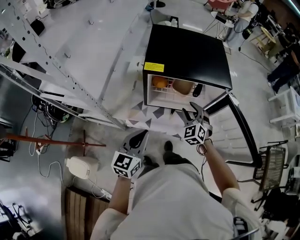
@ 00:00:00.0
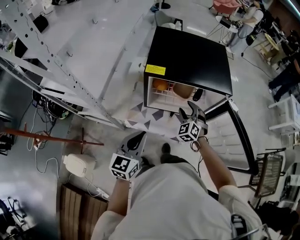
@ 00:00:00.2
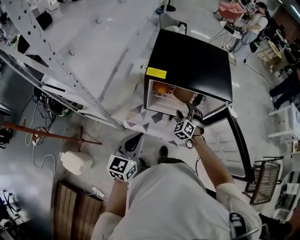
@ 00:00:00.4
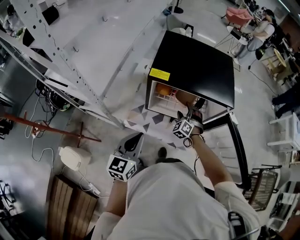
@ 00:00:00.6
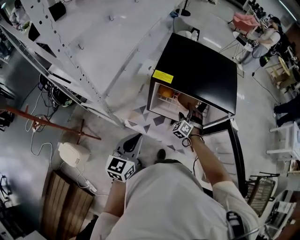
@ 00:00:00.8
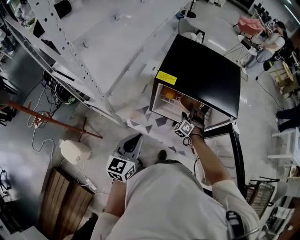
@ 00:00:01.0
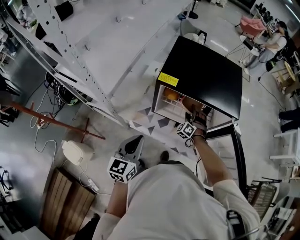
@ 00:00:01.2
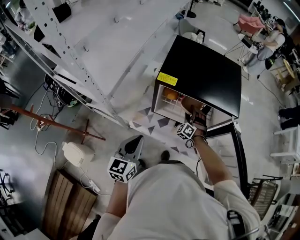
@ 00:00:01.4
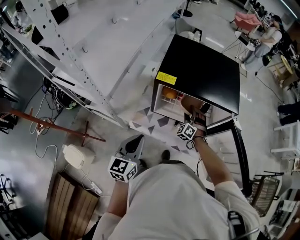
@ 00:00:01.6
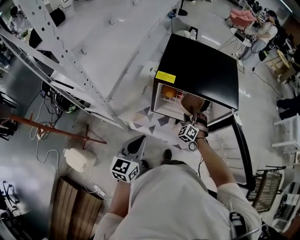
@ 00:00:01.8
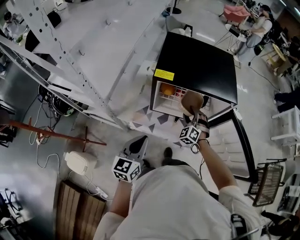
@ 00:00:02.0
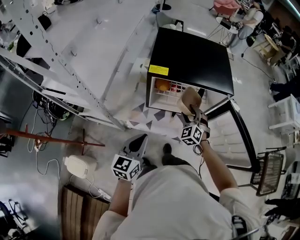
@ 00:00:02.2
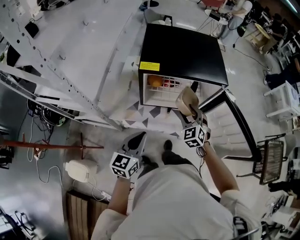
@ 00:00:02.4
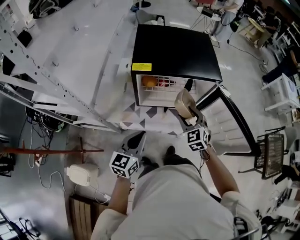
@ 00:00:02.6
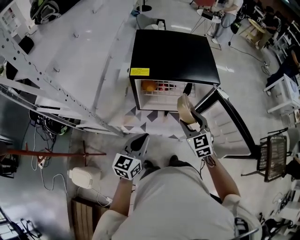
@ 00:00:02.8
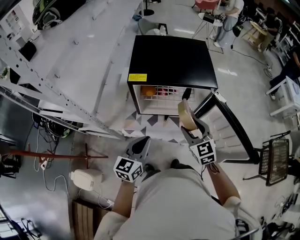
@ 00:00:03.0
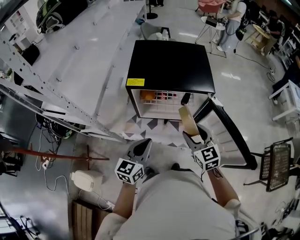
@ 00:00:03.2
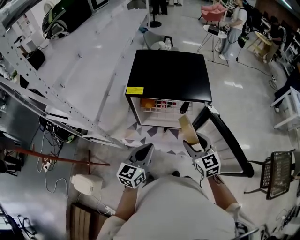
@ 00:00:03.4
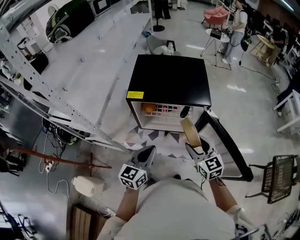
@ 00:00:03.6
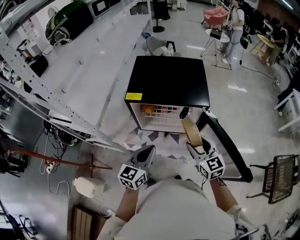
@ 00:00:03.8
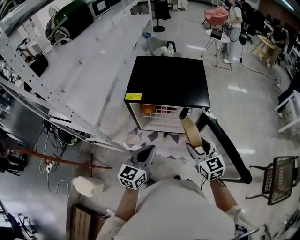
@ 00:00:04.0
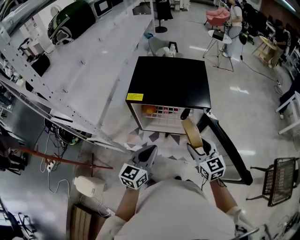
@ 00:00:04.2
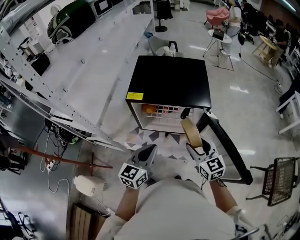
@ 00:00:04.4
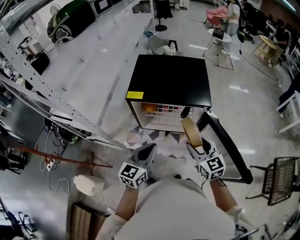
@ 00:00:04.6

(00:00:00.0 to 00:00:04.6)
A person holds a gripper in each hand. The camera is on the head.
00:00:00.0 - 00:00:01.6: The right gripper is displaced downward and forward by approximately 15 cm, and turns by approximately 20 degrees.
00:00:01.6 - 00:00:03.0: The right gripper is displaced upward and backward by some 25 cm, and rolls clockwise, seen from behind, by about 50 degrees. The left gripper shifts approximately 5 cm to the right.
00:00:03.0 - 00:00:04.6: The two grippers go approximately 5 cm to the right.

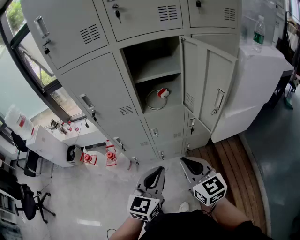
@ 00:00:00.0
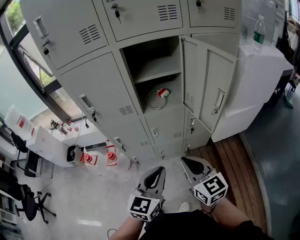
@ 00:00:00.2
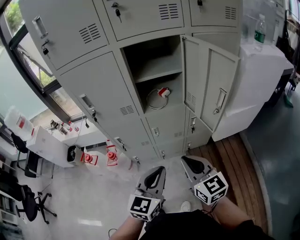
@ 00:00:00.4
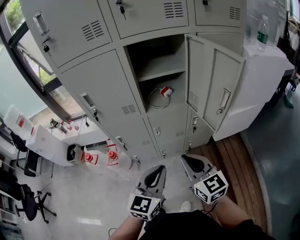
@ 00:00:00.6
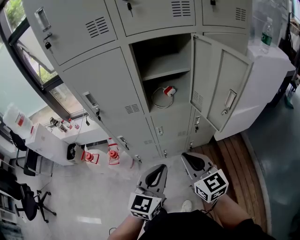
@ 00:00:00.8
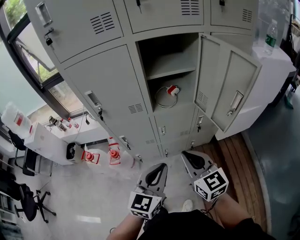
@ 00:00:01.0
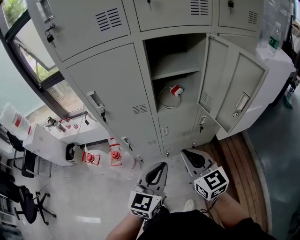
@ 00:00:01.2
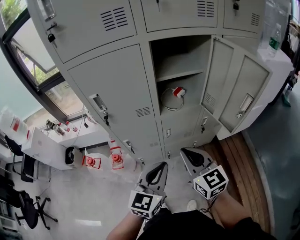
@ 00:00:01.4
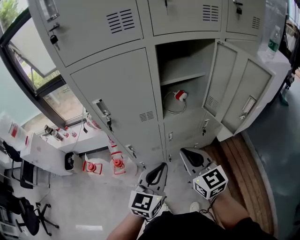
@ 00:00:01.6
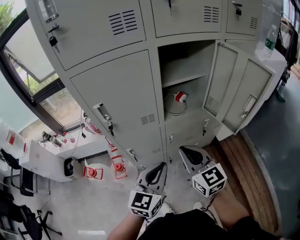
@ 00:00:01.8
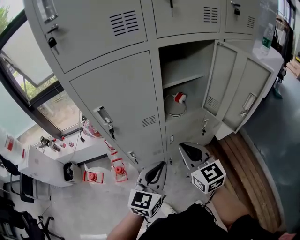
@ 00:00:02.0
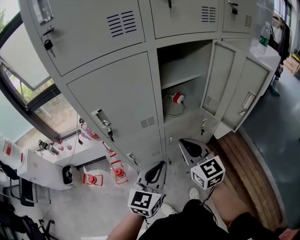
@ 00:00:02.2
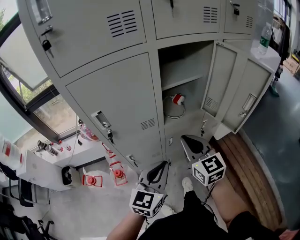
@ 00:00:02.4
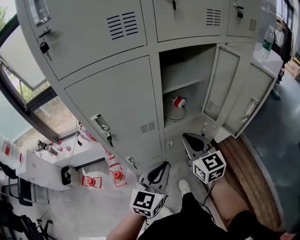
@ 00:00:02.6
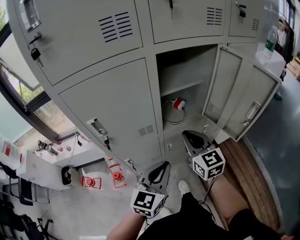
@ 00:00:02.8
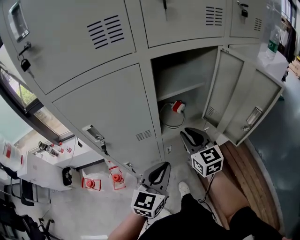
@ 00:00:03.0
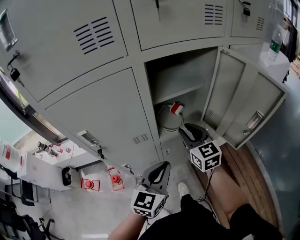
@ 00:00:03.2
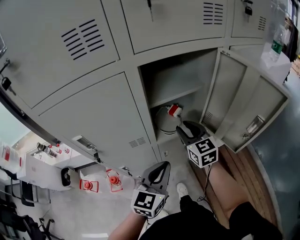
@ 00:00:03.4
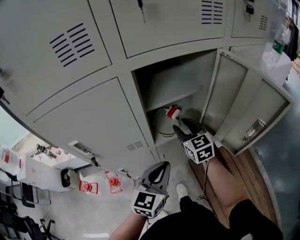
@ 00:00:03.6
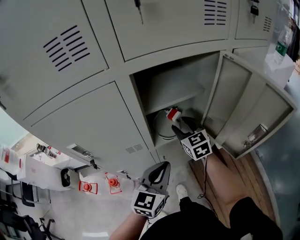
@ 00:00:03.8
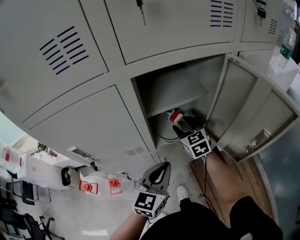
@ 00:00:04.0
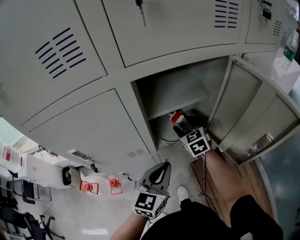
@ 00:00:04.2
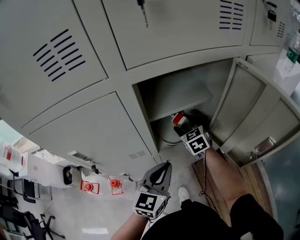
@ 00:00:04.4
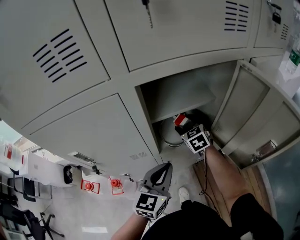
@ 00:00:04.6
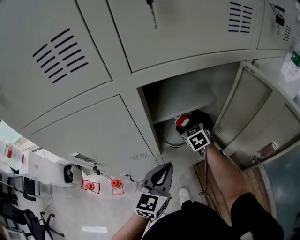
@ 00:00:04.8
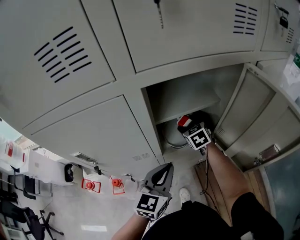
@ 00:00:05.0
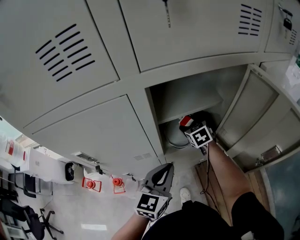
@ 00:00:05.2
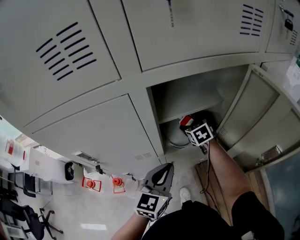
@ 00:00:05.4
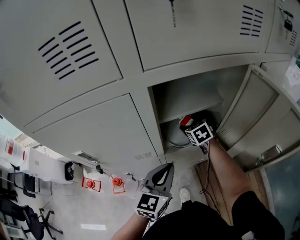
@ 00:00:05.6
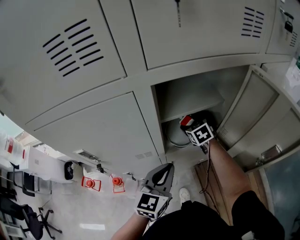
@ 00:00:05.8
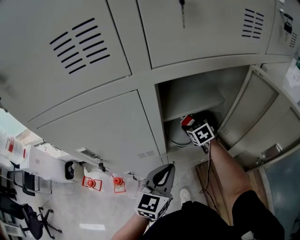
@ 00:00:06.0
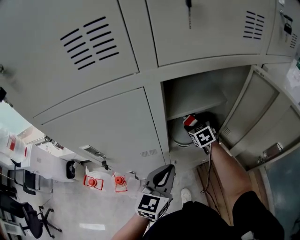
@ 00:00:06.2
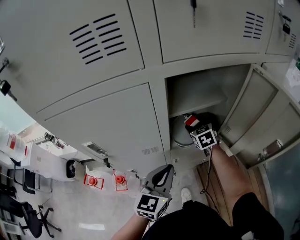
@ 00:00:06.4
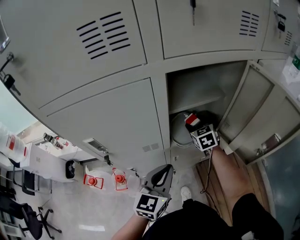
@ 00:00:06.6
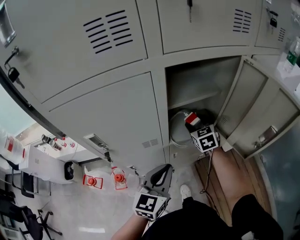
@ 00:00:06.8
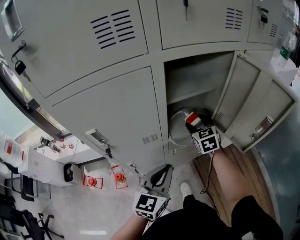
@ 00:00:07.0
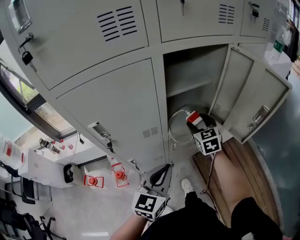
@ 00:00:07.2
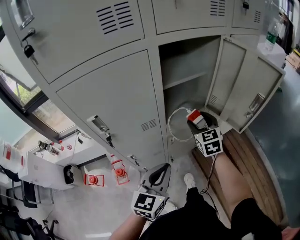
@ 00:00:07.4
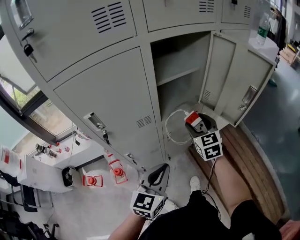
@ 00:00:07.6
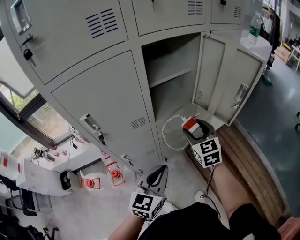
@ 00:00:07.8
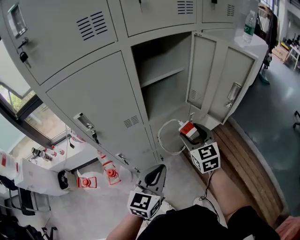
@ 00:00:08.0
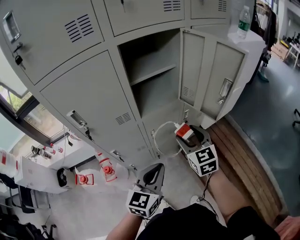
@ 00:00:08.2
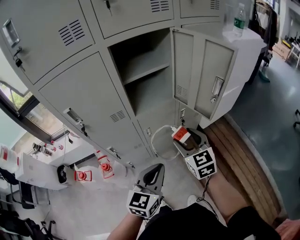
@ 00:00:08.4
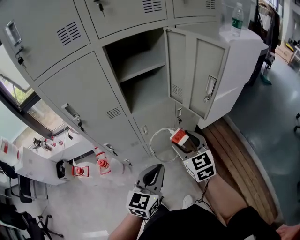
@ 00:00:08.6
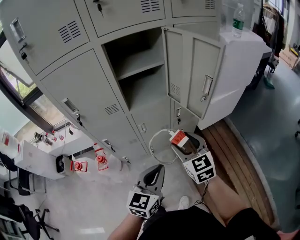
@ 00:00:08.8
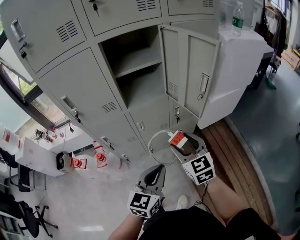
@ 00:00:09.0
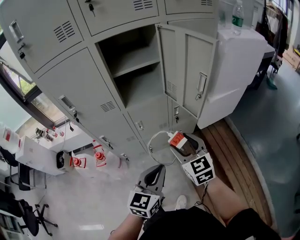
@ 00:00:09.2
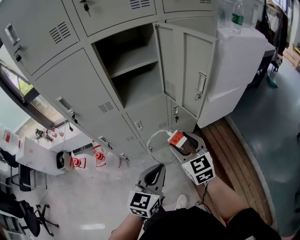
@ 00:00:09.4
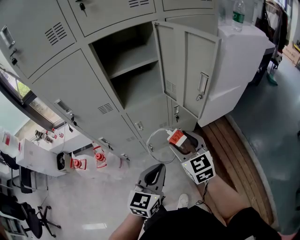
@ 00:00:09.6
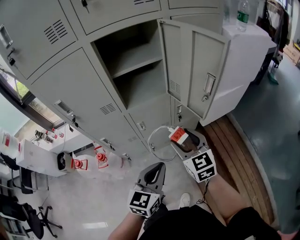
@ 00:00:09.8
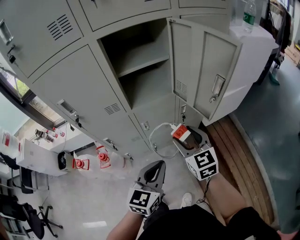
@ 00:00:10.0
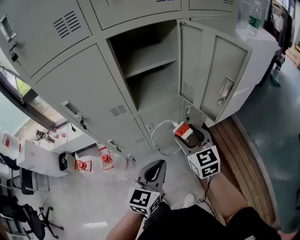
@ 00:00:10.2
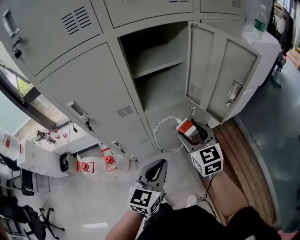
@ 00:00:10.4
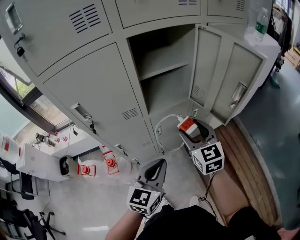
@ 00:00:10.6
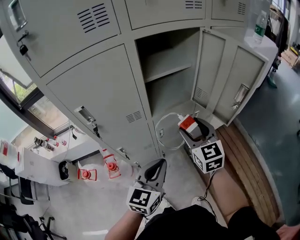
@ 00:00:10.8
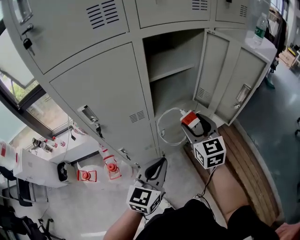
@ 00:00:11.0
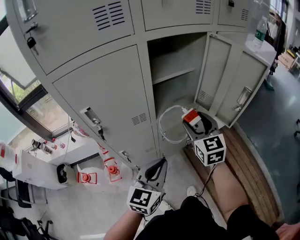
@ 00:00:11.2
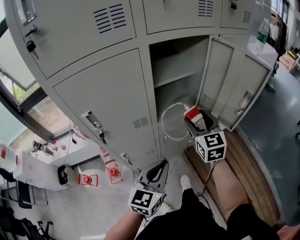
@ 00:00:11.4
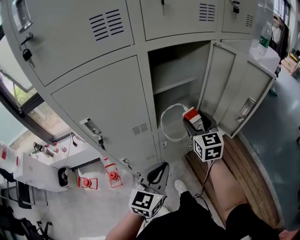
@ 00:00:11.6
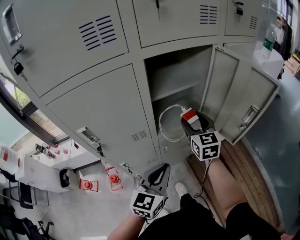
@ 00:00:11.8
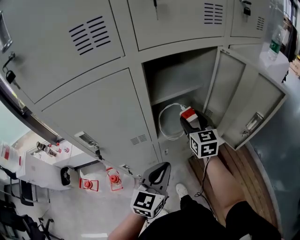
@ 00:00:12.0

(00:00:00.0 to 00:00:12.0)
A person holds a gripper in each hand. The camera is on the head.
00:00:00.0 - 00:00:01.6: The two grippers go about 15 cm to the left and forward.
00:00:01.6 - 00:00:03.0: The right gripper travels forward by approximately 15 cm. The left gripper travels forward by some 10 cm.
00:00:03.0 - 00:00:04.4: The left gripper moves forward, approximately 10 cm; the right gripper is displaced forward and downward by about 20 cm, rotates some 20 degrees, and opens up.
00:00:04.4 - 00:00:06.0: The grippers move only a little.
00:00:06.0 - 00:00:07.6: The right gripper moves backward and upward, approximately 25 cm, and changes its angle by roughly 30 degrees. Meanwhile the left gripper travels backward by some 15 cm.
00:00:07.6 - 00:00:09.0: The left gripper heads to the right, covering roughly 20 cm. Meanwhile the right gripper goes some 20 cm backward and to the right.
00:00:09.0 - 00:00:10.4: The left gripper moves to the left and forward, approximately 10 cm. The right gripper shifts some 10 cm forward and to the left.
00:00:10.4 - 00:00:12.0: The left gripper moves forward and to the left, some 10 cm. Meanwhile the right gripper travels forward by roughly 20 cm.

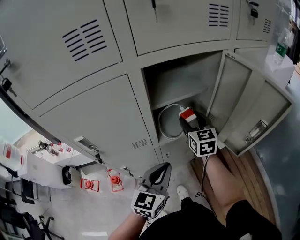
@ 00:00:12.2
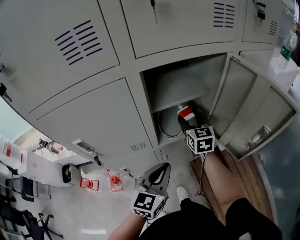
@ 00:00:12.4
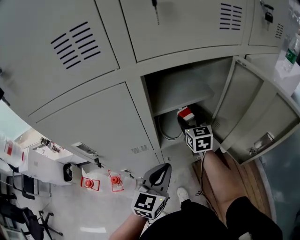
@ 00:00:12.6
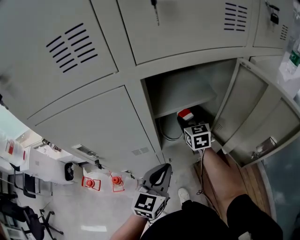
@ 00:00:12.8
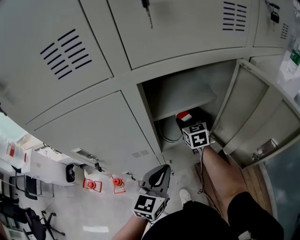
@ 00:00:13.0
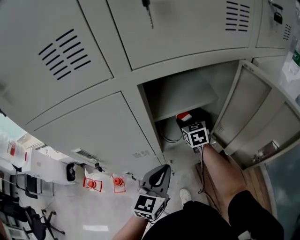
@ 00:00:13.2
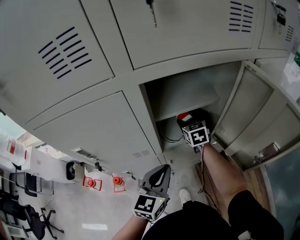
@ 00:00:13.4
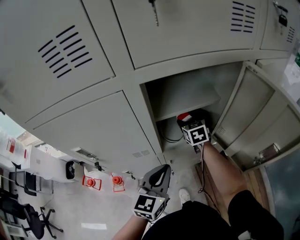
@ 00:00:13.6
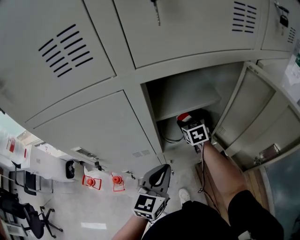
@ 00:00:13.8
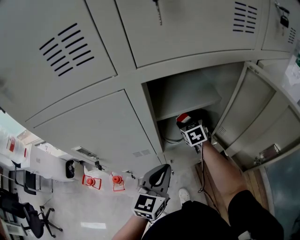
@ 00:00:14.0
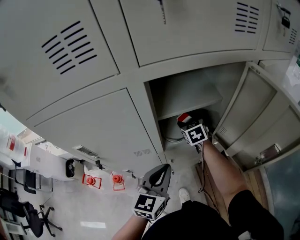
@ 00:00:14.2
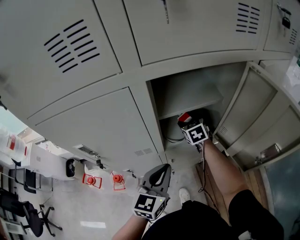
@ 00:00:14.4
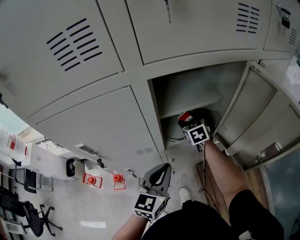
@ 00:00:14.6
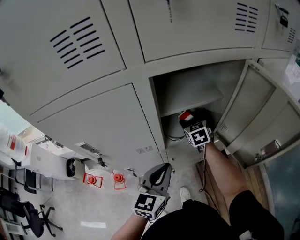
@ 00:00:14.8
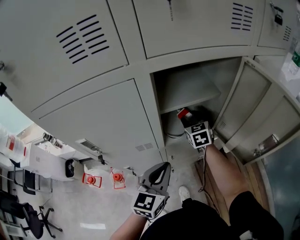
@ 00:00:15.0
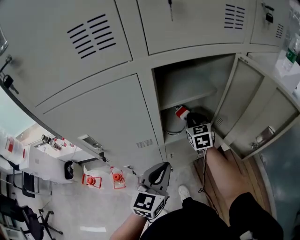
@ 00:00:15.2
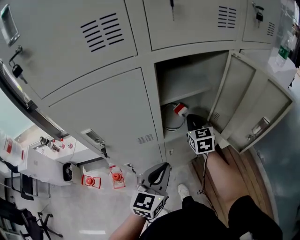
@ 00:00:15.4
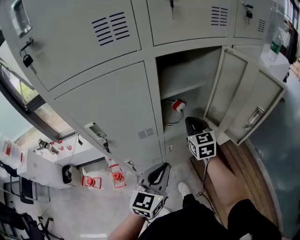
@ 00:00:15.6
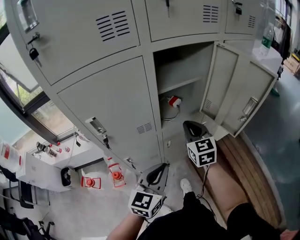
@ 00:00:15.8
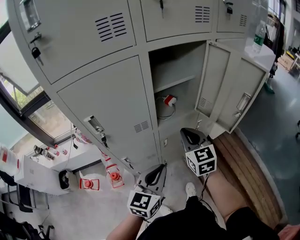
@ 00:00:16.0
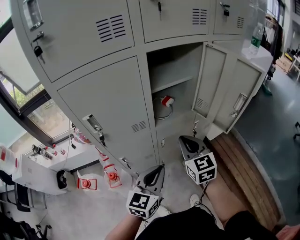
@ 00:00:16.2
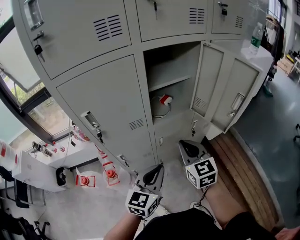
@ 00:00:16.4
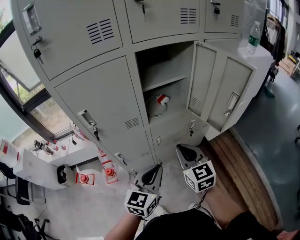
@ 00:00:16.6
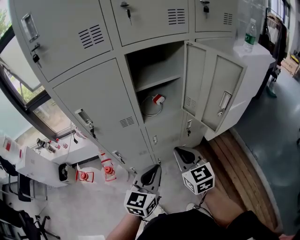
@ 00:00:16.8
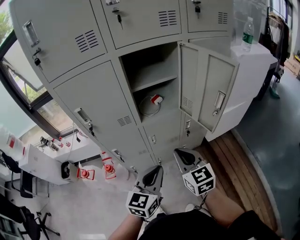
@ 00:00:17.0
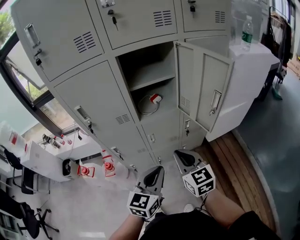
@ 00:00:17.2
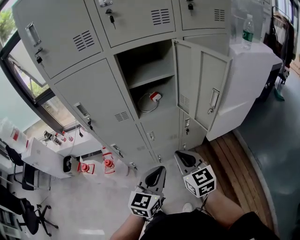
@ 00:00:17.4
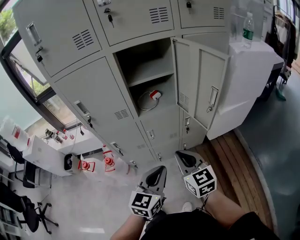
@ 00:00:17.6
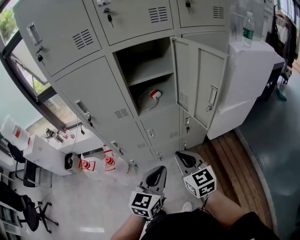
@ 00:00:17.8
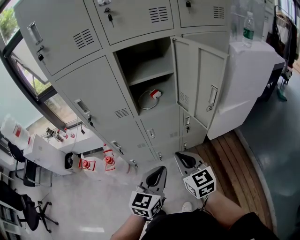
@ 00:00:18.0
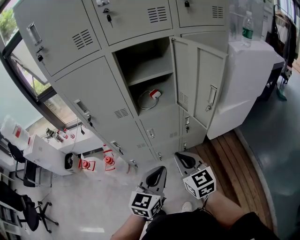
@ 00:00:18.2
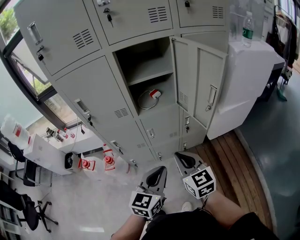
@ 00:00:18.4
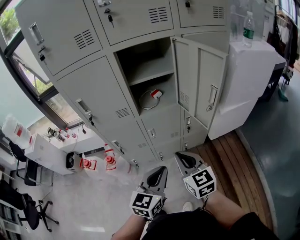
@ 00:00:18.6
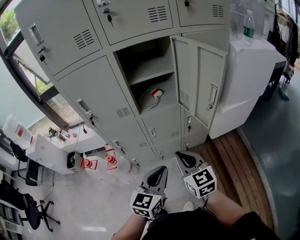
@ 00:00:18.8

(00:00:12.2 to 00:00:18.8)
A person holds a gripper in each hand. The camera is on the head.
00:00:12.2 - 00:00:13.8: The left gripper shifts roughly 5 cm forward; the right gripper travels downward and forward by about 15 cm, and rotates some 20 degrees.
00:00:13.8 - 00:00:15.4: The left gripper heads backward, covering roughly 5 cm. Meanwhile the right gripper heads backward and upward, covering about 15 cm, and closes.
00:00:15.4 - 00:00:17.2: The left gripper moves backward and to the right, some 20 cm. The right gripper is displaced backward by roughly 30 cm.
00:00:17.2 - 00:00:18.8: The grippers move only a little.
